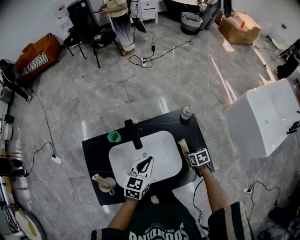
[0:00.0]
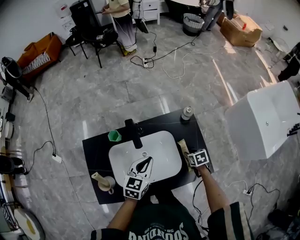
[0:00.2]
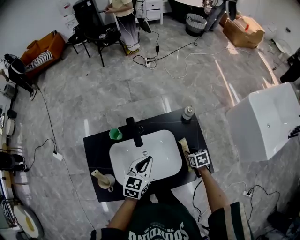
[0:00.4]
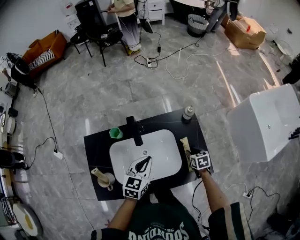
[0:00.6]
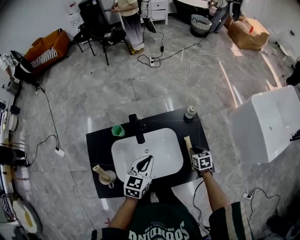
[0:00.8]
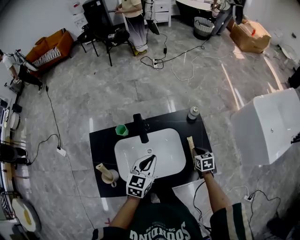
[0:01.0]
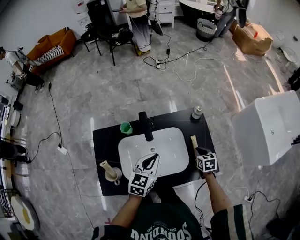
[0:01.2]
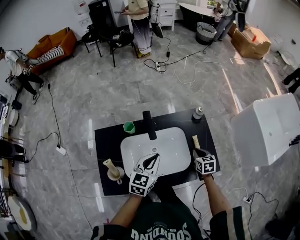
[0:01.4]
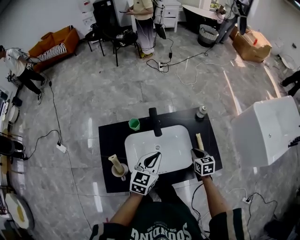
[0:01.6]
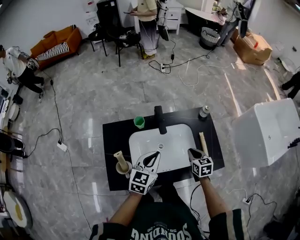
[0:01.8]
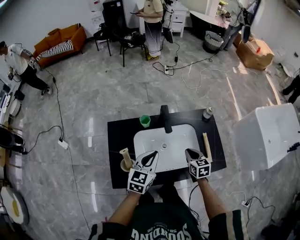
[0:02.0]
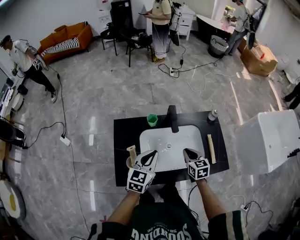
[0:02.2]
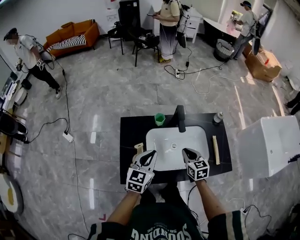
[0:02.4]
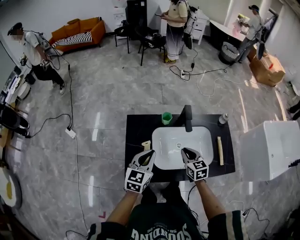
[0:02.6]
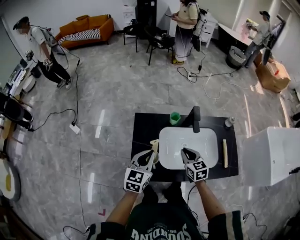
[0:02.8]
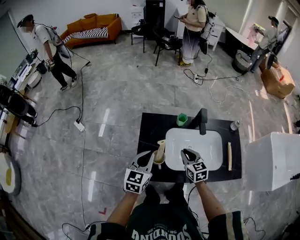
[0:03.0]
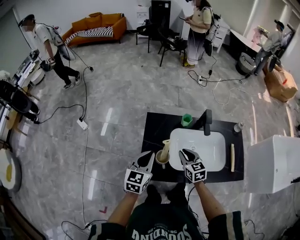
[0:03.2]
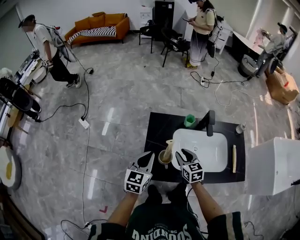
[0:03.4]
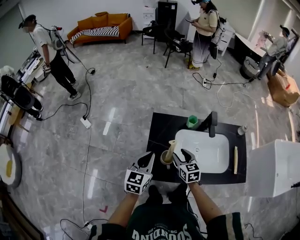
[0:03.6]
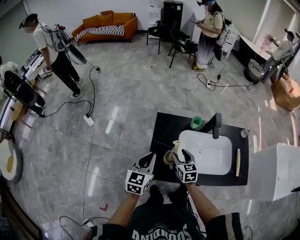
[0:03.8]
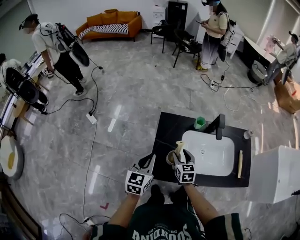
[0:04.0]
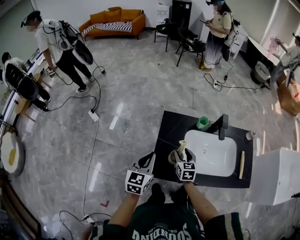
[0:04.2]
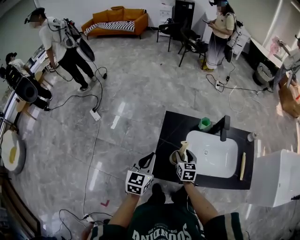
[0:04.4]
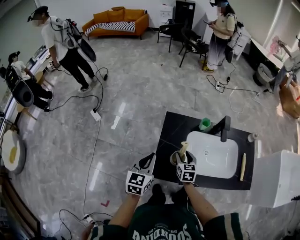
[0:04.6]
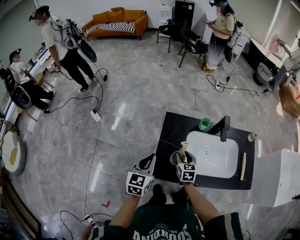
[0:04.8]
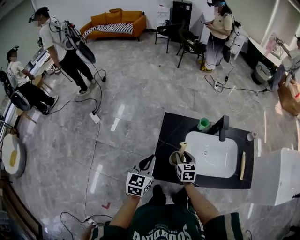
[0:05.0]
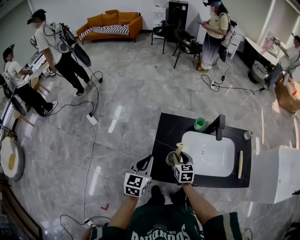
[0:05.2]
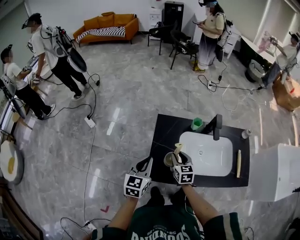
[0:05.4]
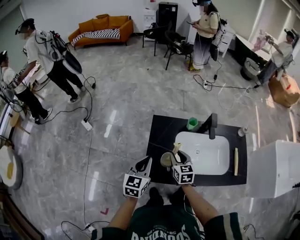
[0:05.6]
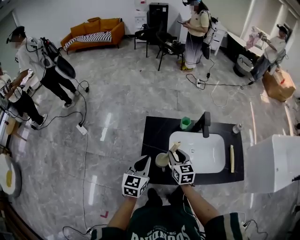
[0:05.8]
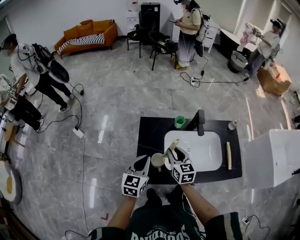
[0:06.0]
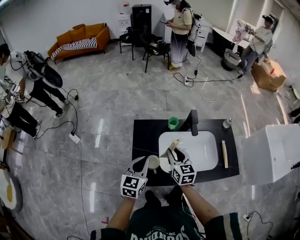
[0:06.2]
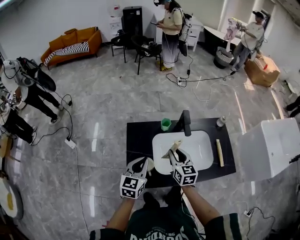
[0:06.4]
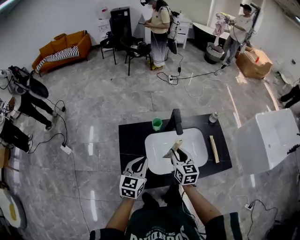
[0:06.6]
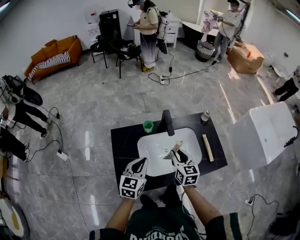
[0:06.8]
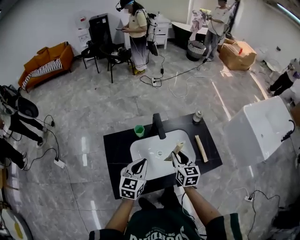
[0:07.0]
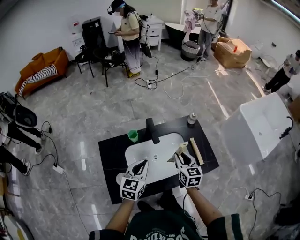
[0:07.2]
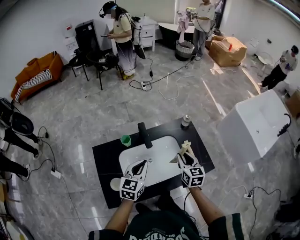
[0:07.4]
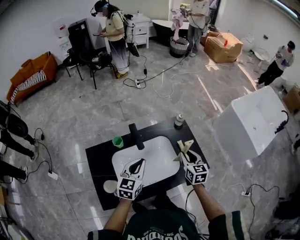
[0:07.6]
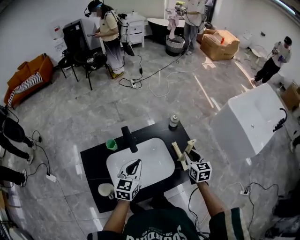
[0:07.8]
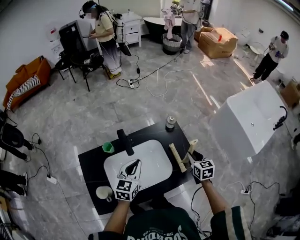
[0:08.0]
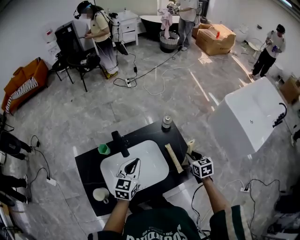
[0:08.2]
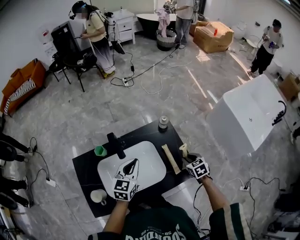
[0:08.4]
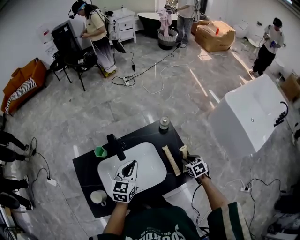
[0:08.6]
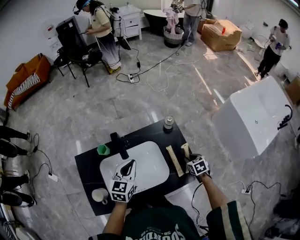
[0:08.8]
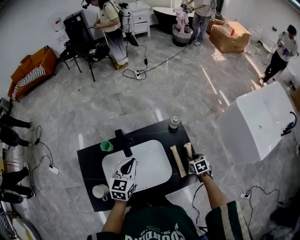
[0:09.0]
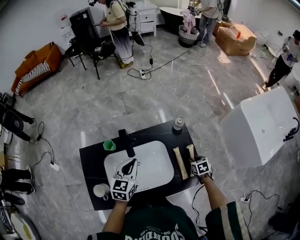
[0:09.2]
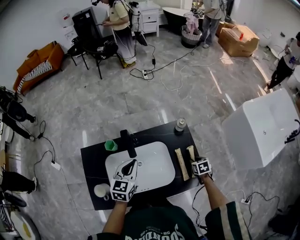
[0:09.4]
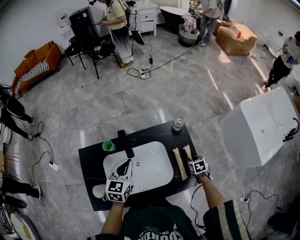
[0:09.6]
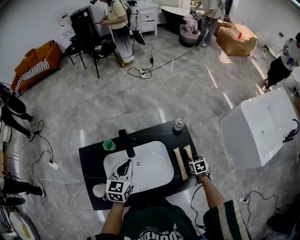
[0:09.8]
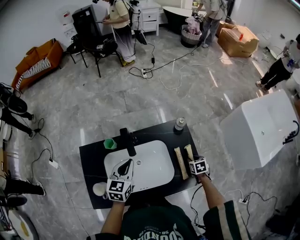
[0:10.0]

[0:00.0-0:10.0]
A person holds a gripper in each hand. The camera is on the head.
0:00.0 to 0:01.4: The right gripper is displaced upward by roughly 10 cm, and turns by approximately 20 degrees, while the left gripper ends up approximately 5 cm from where it was.
0:01.4 to 0:02.8: Both grippers travel together to the left, roughly 30 cm. The right gripper rotates some 30 degrees.
0:02.8 to 0:04.2: The grippers both shift to the left by approximately 15 cm. The right gripper opens its fingers.
0:04.2 to 0:05.8: The left gripper heads to the right, covering some 5 cm. The right gripper shifts some 5 cm upward.
0:05.8 to 0:07.2: Both grippers travel together to the right, about 30 cm. The left gripper changes its angle by approximately 20 degrees. The right gripper turns by approximately 20 degrees.
0:07.2 to 0:08.6: The left gripper travels to the right and forward by some 20 cm; the right gripper heads to the right and downward, covering approximately 30 cm, and tilts its fingers roughly 30 degrees downward.
0:08.6 to 0:10.0: The right gripper moves downward, roughly 5 cm, while the left gripper shifts roughly 10 cm to the left.

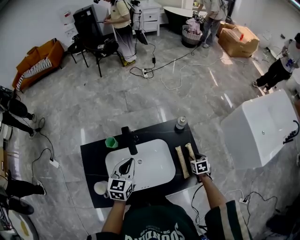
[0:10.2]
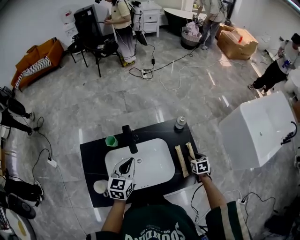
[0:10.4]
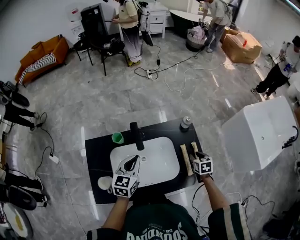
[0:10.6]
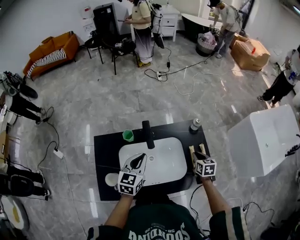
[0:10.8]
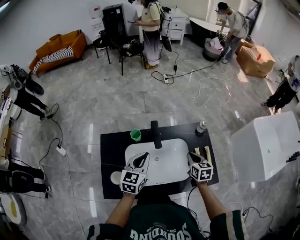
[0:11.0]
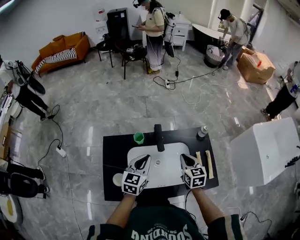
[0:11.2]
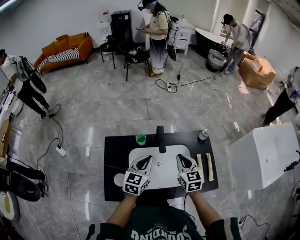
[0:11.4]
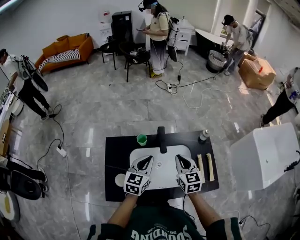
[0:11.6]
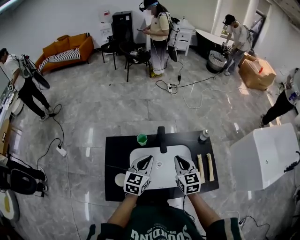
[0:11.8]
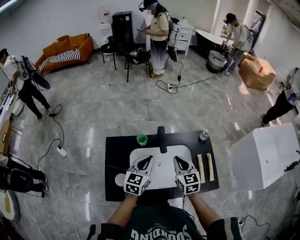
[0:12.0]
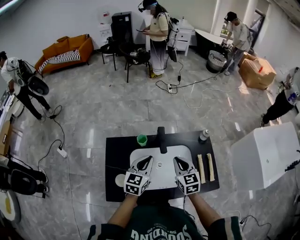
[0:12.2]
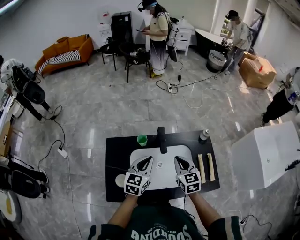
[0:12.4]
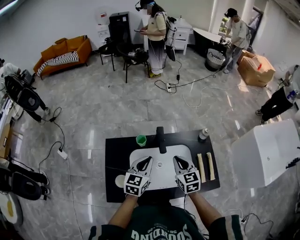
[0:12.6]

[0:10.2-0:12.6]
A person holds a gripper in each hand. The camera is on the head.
0:10.2 to 0:11.4: The left gripper is displaced to the left by about 10 cm; the right gripper is displaced to the left and upward by some 40 cm, angles its fingers upward, by about 40 degrees, and closes its fingers.
0:11.4 to 0:12.6: The grippers make only small movements.

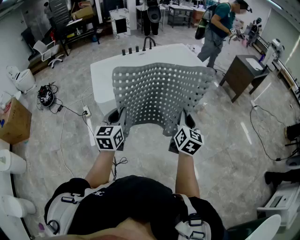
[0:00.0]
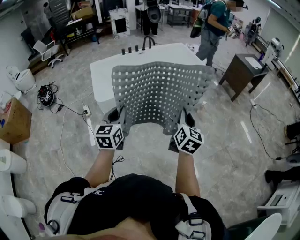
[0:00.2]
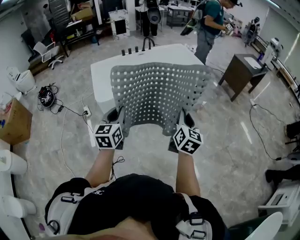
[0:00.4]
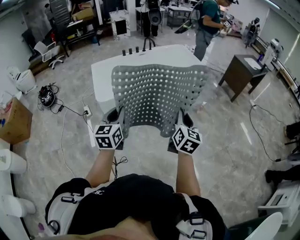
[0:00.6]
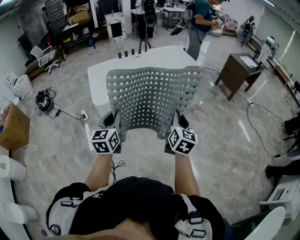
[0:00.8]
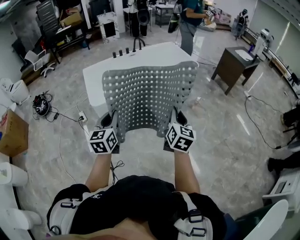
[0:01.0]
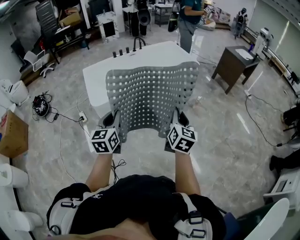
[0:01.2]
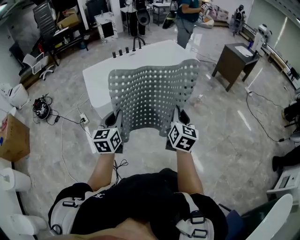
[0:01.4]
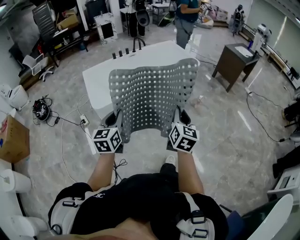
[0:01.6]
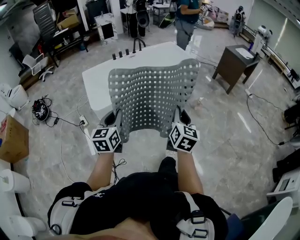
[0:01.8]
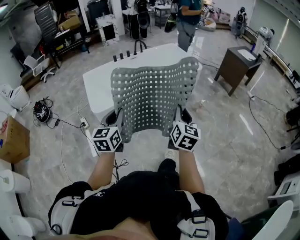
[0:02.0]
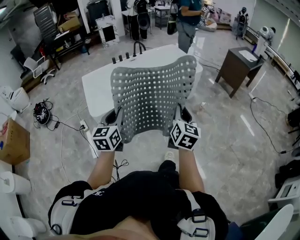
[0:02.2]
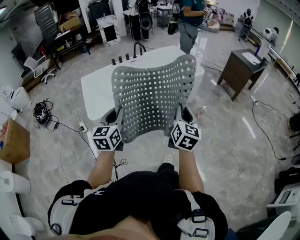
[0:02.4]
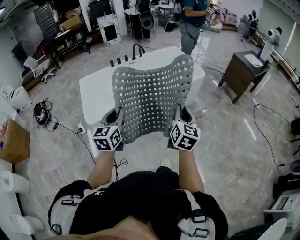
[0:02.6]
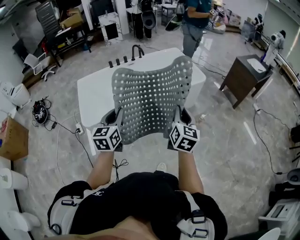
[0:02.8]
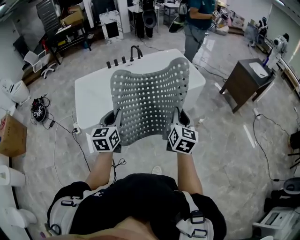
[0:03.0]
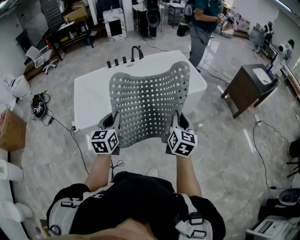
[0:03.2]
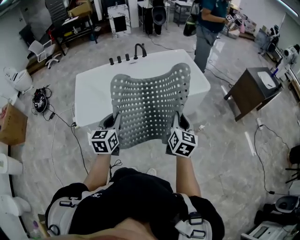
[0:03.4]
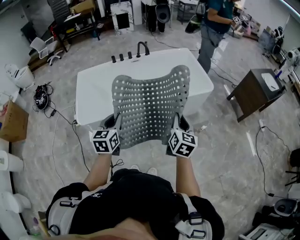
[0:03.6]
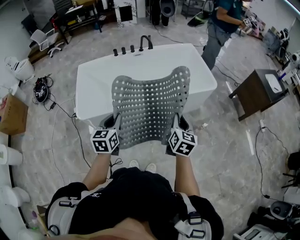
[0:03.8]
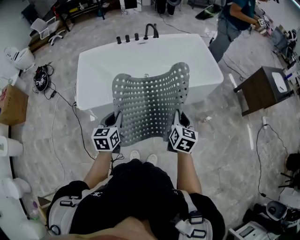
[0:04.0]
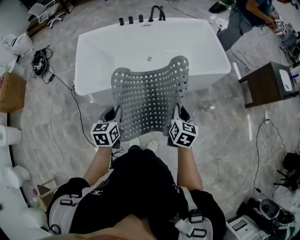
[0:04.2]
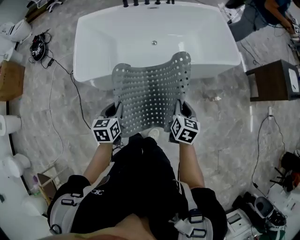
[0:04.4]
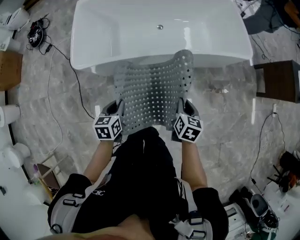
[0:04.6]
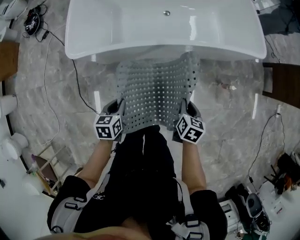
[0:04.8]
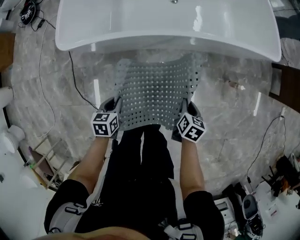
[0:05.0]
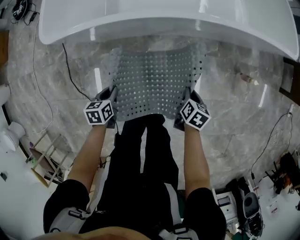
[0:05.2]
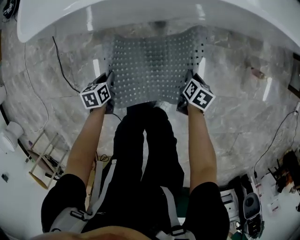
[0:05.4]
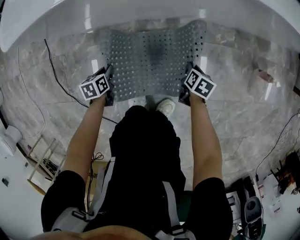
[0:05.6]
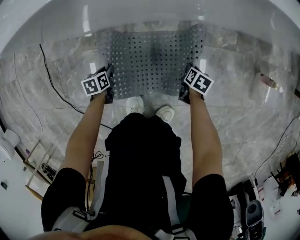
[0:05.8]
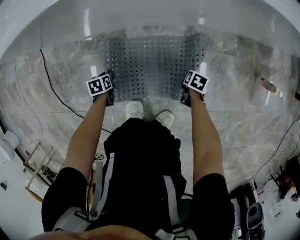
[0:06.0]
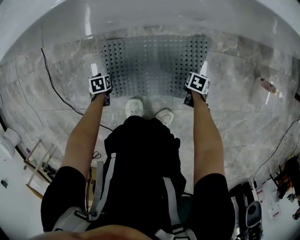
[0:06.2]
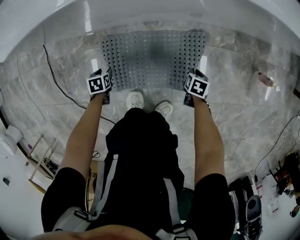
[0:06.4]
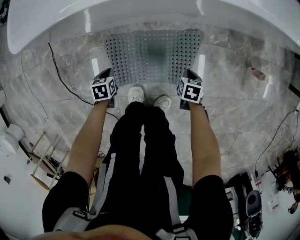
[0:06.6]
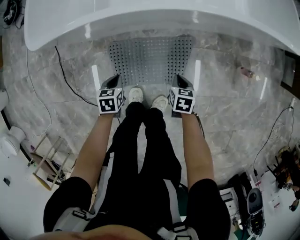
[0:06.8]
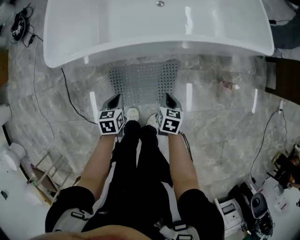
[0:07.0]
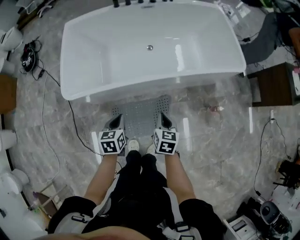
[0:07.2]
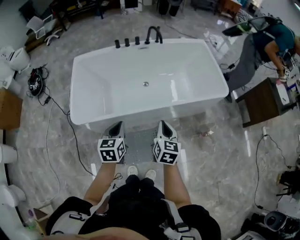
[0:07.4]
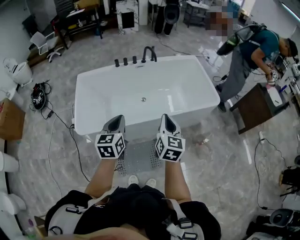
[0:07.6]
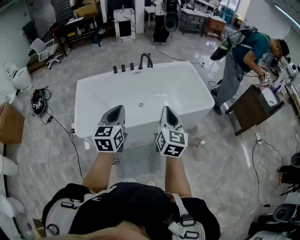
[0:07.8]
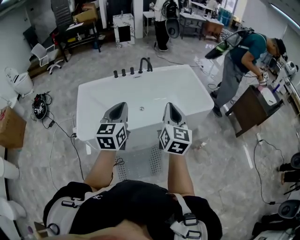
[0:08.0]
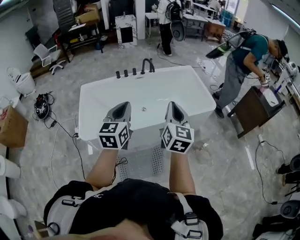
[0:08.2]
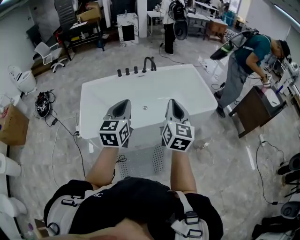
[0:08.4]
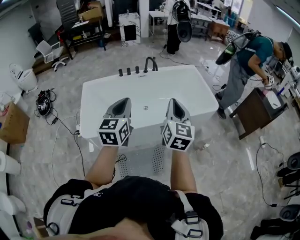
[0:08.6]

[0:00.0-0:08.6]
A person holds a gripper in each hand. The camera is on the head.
0:00.0 to 0:01.4: The right gripper moves approximately 5 cm.
0:01.4 to 0:02.8: Both grippers move forward, roughly 25 cm.
0:02.8 to 0:04.4: The right gripper shifts roughly 25 cm downward and forward, and tilts its fingers approximately 30 degrees downward; the left gripper goes about 25 cm downward, and changes its angle by approximately 30 degrees.
0:04.4 to 0:05.8: The grippers both shift downward by some 70 cm. The right gripper tilts its fingers roughly 30 degrees downward; the left gripper swivels some 30 degrees.
0:05.8 to 0:07.2: Both grippers travel together upward, roughly 60 cm. The left gripper turns by roughly 30 degrees, and opens, then closes once more; the right gripper rotates approximately 30 degrees, and opens, then closes again.
0:07.2 to 0:08.6: The two grippers go roughly 50 cm upward. The right gripper tilts its fingers some 40 degrees upward. Meanwhile the left gripper points its fingers approximately 40 degrees further upward.

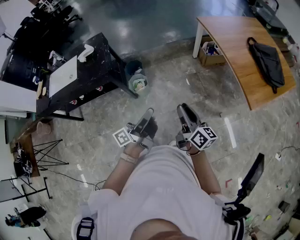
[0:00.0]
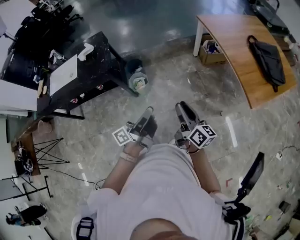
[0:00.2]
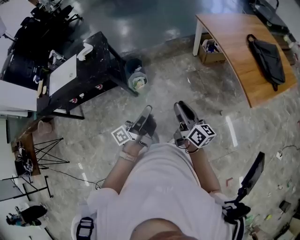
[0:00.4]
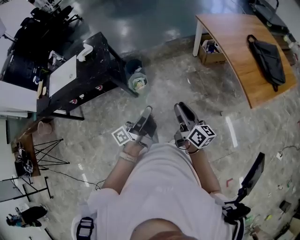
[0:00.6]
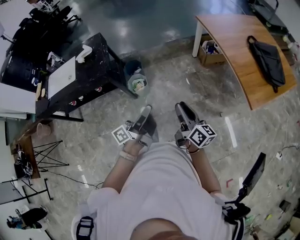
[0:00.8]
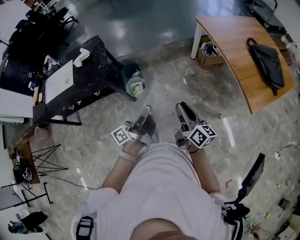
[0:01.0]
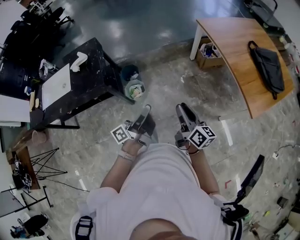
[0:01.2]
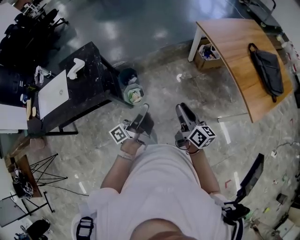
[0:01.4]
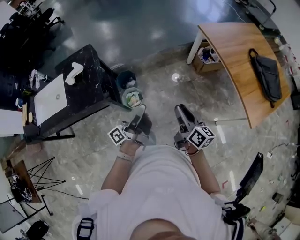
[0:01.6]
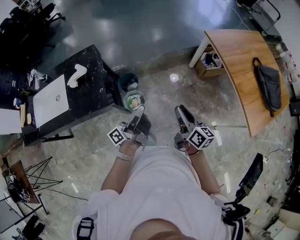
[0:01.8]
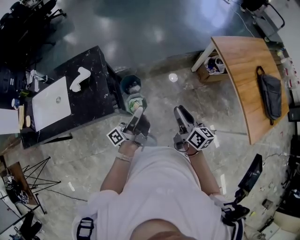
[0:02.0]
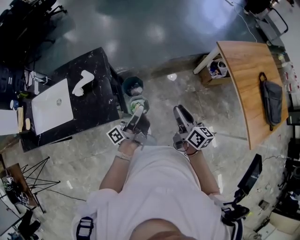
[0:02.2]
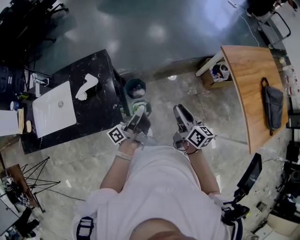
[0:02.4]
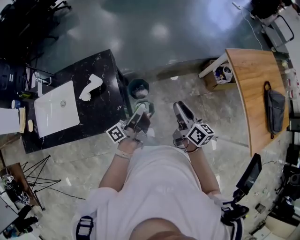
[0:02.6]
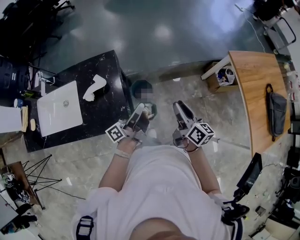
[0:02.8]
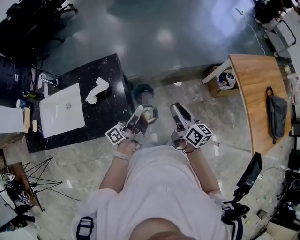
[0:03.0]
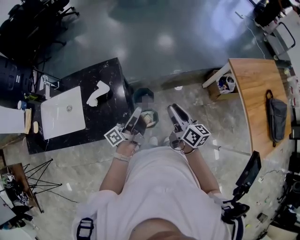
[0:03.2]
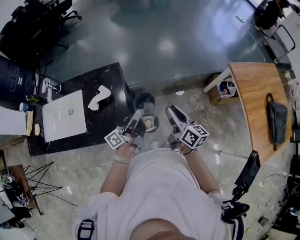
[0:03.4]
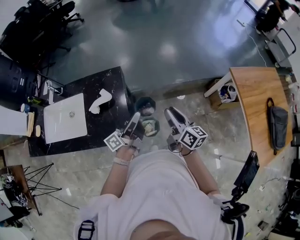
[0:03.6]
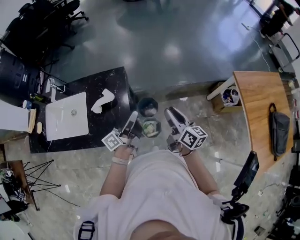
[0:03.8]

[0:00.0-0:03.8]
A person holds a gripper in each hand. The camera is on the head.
0:00.0 to 0:01.2: The left gripper moves forward and to the left, approximately 15 cm. Meanwhile the right gripper moves forward, about 10 cm.
0:01.2 to 0:02.6: Both grippers are carried forward and to the left, about 40 cm.
0:02.6 to 0:03.8: The right gripper is displaced to the left and forward by some 10 cm; the left gripper travels to the left by roughly 5 cm.
